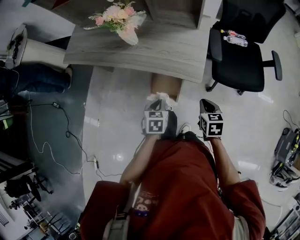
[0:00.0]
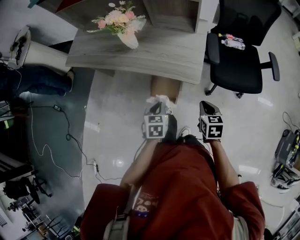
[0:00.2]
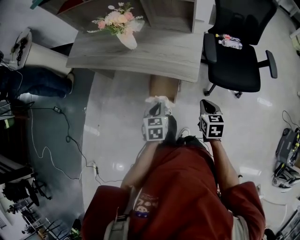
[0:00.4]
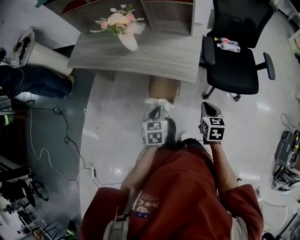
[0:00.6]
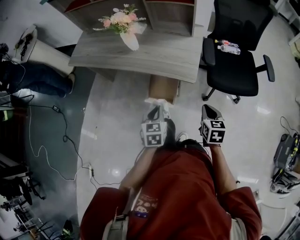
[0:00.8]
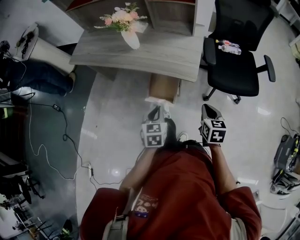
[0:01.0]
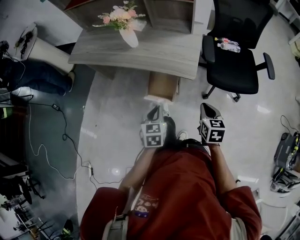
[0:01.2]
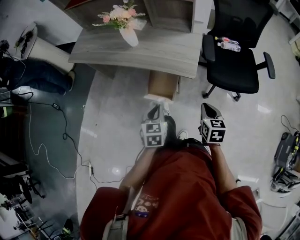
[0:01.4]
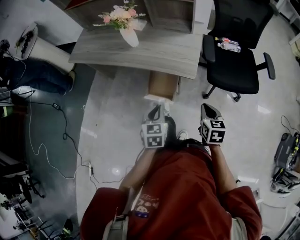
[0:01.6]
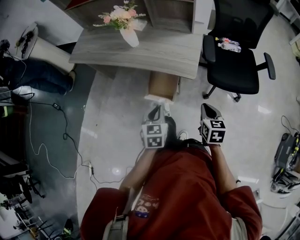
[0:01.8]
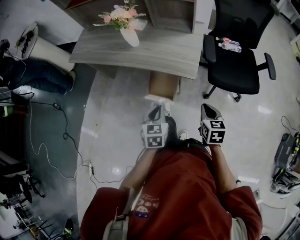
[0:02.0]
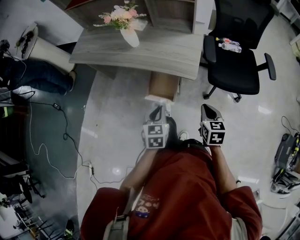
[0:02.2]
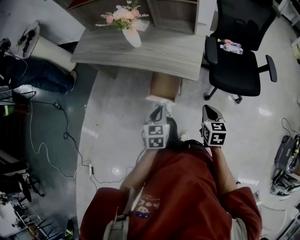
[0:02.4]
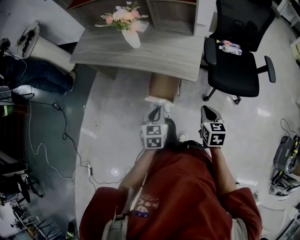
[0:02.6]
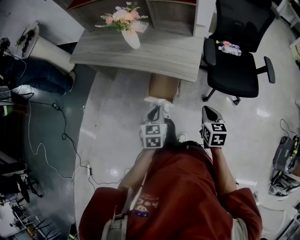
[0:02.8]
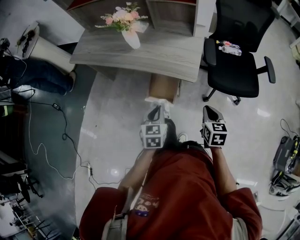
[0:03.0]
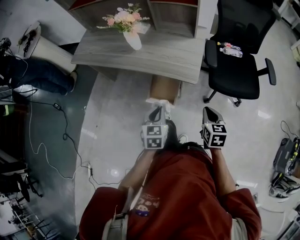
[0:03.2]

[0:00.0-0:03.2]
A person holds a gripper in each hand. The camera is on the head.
0:00.0 to 0:01.6: The left gripper is displaced backward and upward by about 10 cm. Meanwhile the right gripper moves backward, approximately 10 cm.
0:01.6 to 0:03.2: Both grippers stay about where they are.

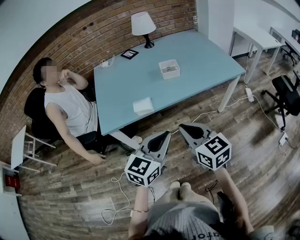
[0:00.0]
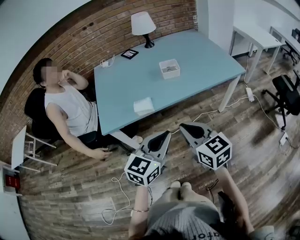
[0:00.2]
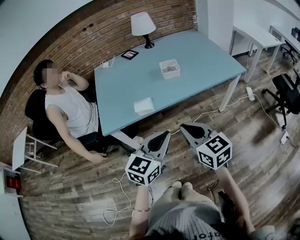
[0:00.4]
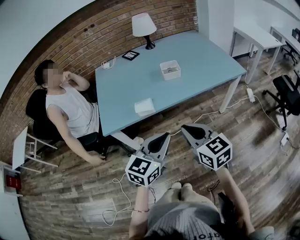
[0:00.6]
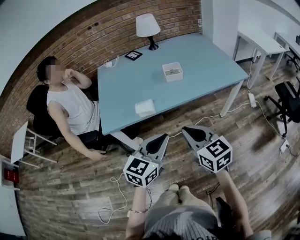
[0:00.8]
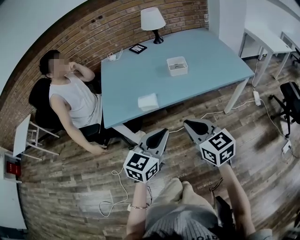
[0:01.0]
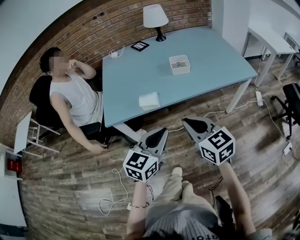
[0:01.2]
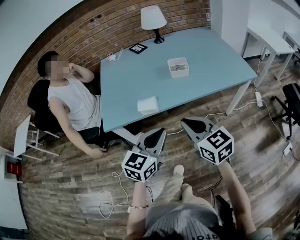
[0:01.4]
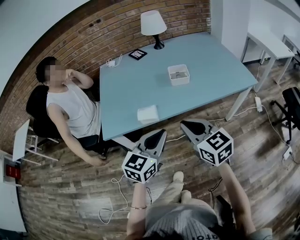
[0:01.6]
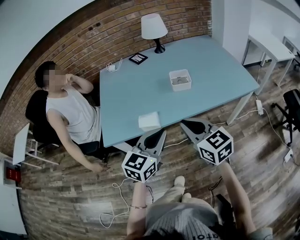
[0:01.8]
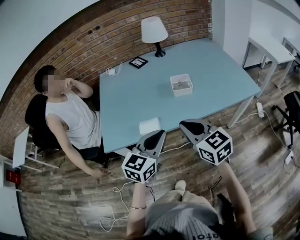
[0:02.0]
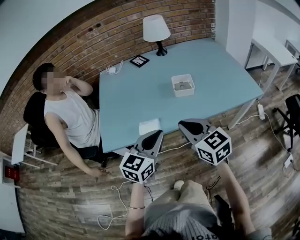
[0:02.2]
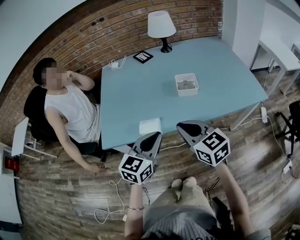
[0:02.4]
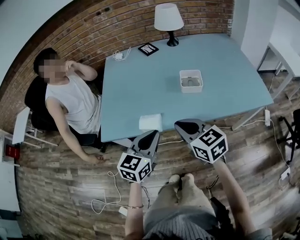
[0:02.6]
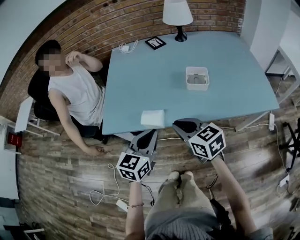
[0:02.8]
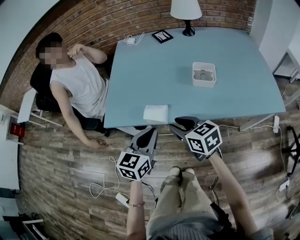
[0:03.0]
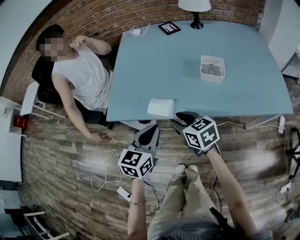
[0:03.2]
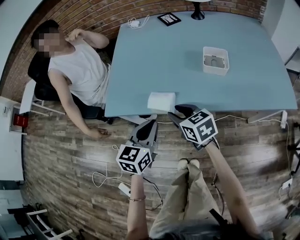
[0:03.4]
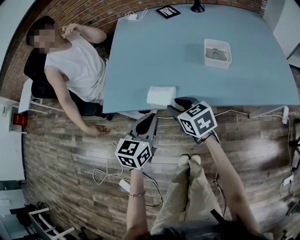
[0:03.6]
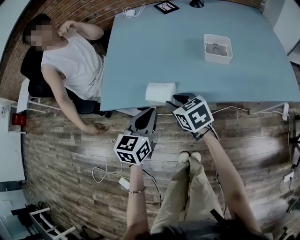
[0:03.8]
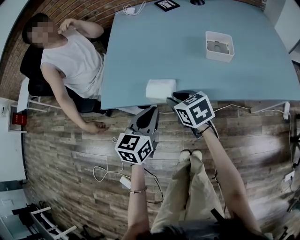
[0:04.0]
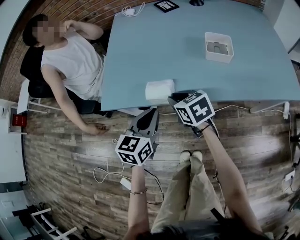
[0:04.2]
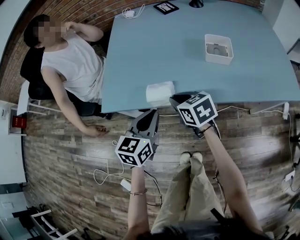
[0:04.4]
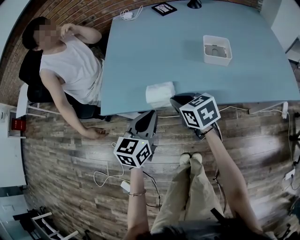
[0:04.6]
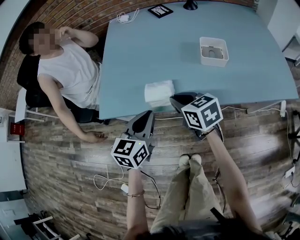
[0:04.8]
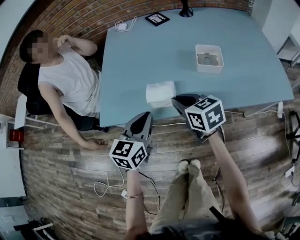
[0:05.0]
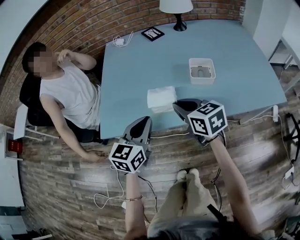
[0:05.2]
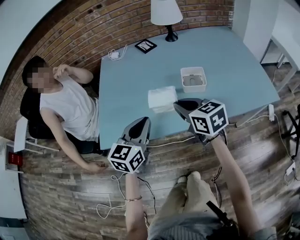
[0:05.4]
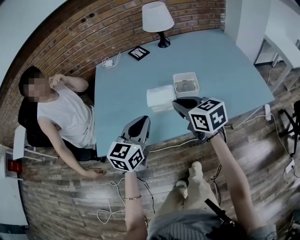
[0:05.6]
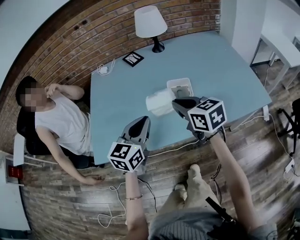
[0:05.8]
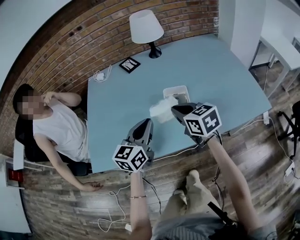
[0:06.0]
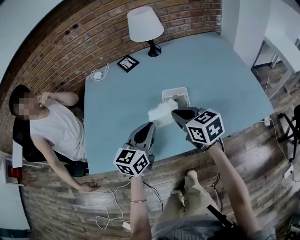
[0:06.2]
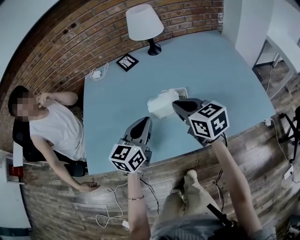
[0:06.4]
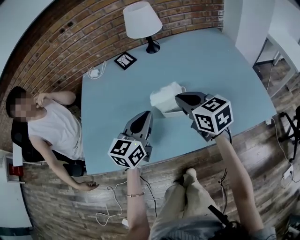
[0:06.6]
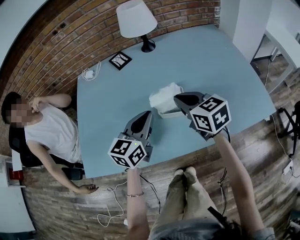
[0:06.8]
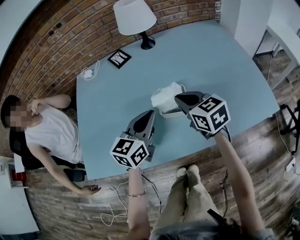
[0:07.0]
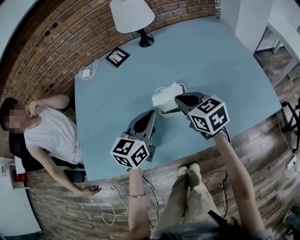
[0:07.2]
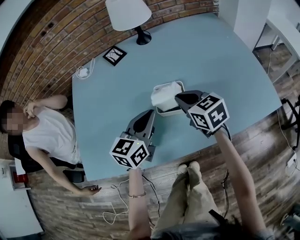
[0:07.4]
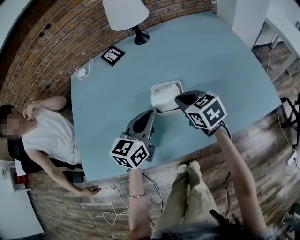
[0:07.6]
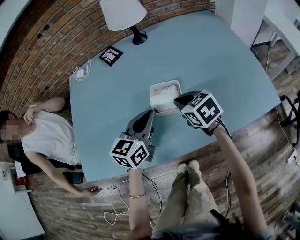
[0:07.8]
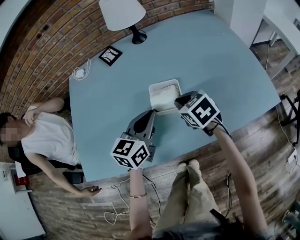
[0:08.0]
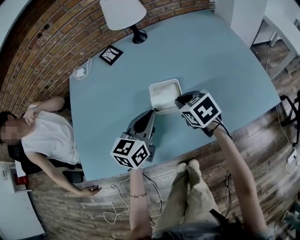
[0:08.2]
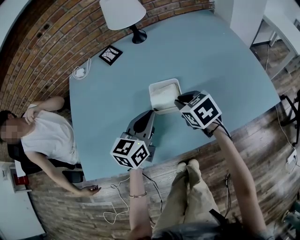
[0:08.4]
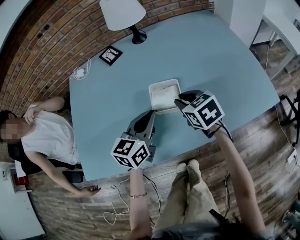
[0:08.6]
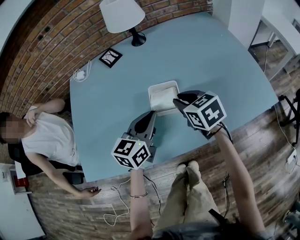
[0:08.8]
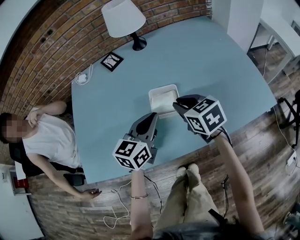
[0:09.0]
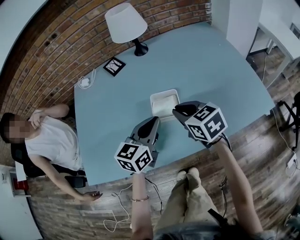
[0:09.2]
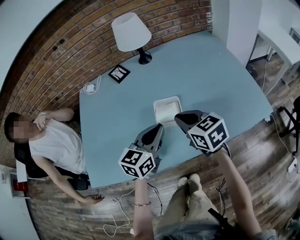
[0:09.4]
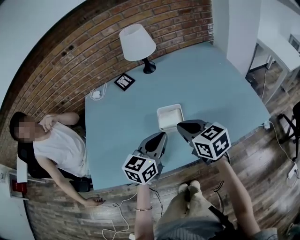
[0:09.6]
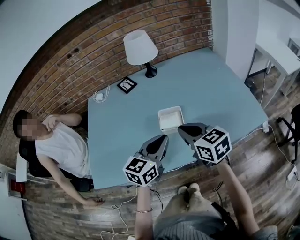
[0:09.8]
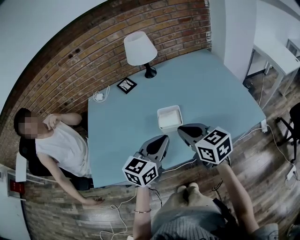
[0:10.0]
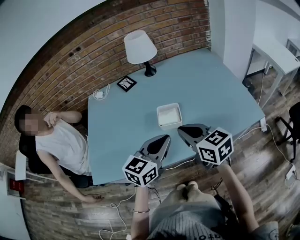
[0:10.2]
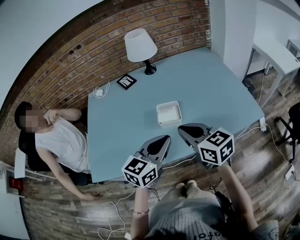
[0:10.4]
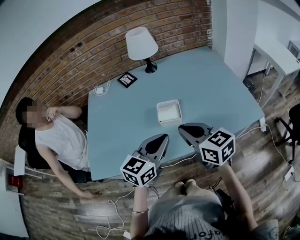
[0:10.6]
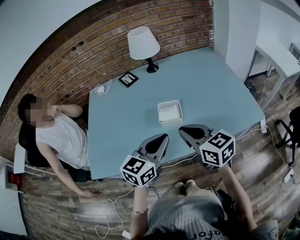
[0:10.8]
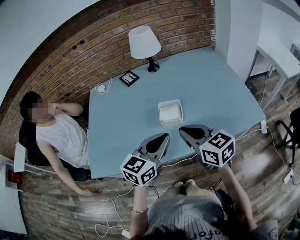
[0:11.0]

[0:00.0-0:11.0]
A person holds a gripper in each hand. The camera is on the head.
0:00.0 to 0:01.6: Both grippers move forward, roughly 10 cm.
0:01.6 to 0:03.2: The left gripper ends up about 15 cm from where it was, and rotates some 30 degrees; the right gripper shifts by approximately 20 cm, changes its angle by approximately 30 degrees, and opens its fingers.
0:03.2 to 0:04.8: The right gripper goes some 5 cm forward, and closes. The left gripper ends up roughly 5 cm from where it was.
0:04.8 to 0:06.2: Both grippers travel together to the right, forward and upward, about 25 cm.
0:06.2 to 0:07.8: The right gripper travels downward, forward and to the right by roughly 10 cm. Meanwhile the left gripper moves forward and to the right, some 10 cm.
0:07.8 to 0:09.4: The left gripper changes place by some 5 cm. Meanwhile the right gripper heads upward, covering approximately 10 cm.
0:09.4 to 0:11.0: The two grippers go roughly 10 cm backward and upward.

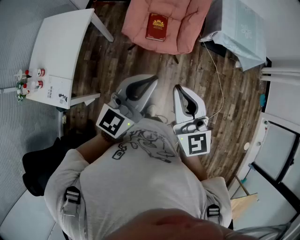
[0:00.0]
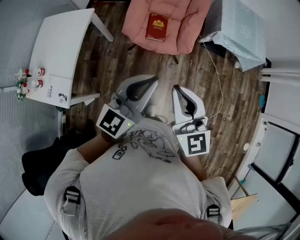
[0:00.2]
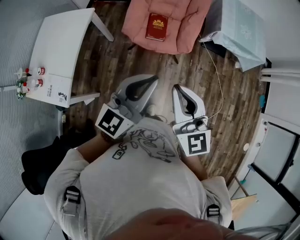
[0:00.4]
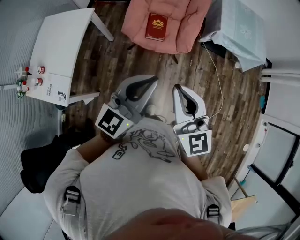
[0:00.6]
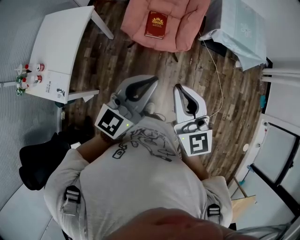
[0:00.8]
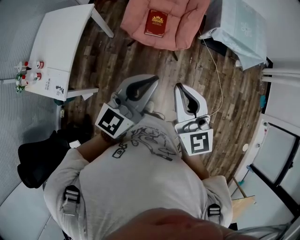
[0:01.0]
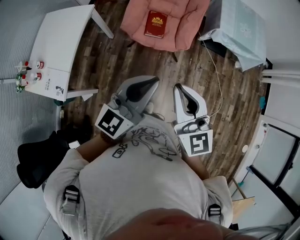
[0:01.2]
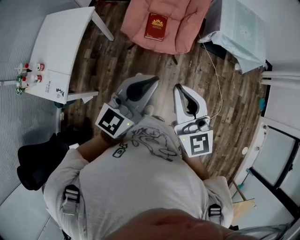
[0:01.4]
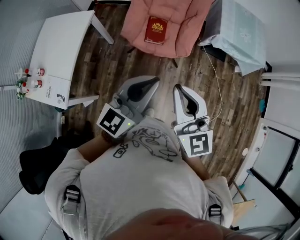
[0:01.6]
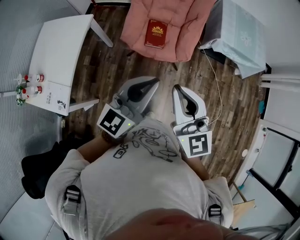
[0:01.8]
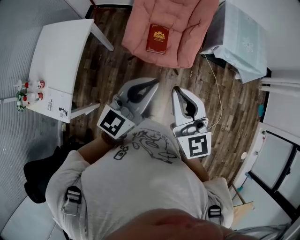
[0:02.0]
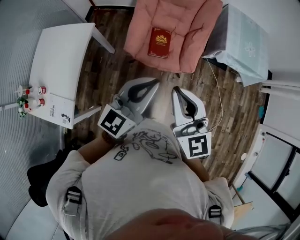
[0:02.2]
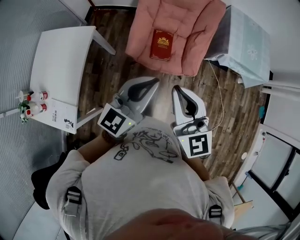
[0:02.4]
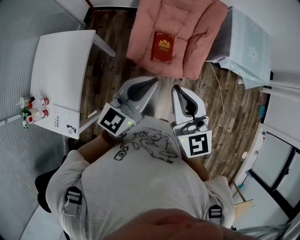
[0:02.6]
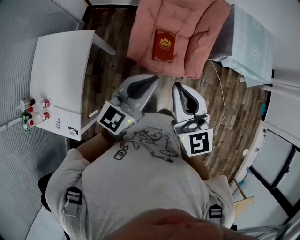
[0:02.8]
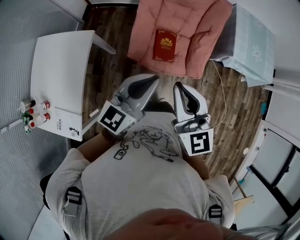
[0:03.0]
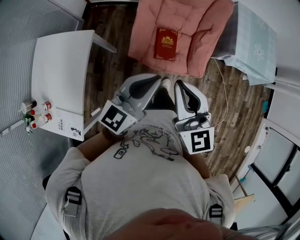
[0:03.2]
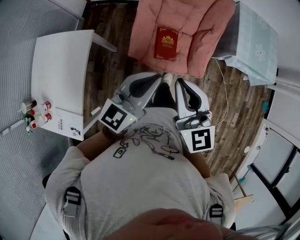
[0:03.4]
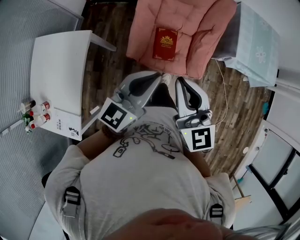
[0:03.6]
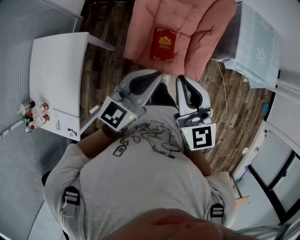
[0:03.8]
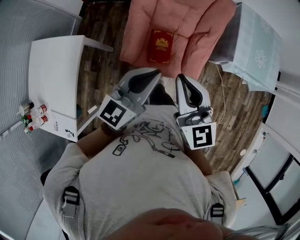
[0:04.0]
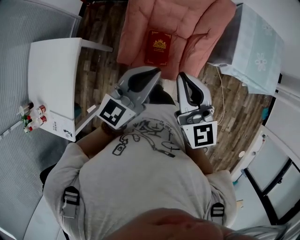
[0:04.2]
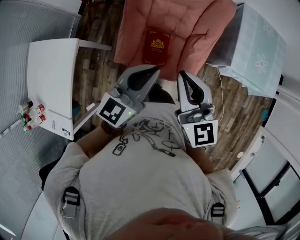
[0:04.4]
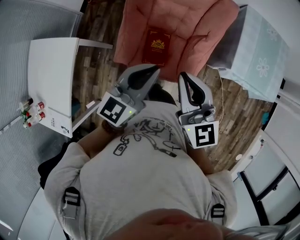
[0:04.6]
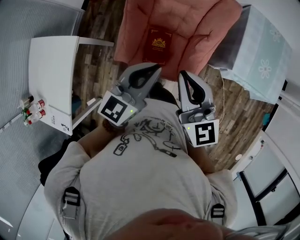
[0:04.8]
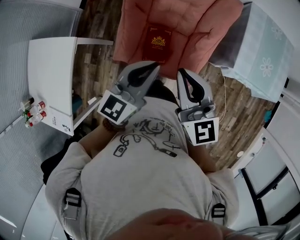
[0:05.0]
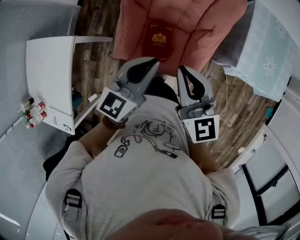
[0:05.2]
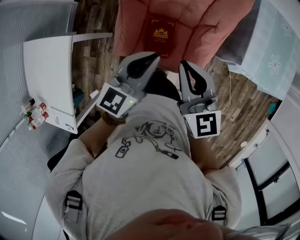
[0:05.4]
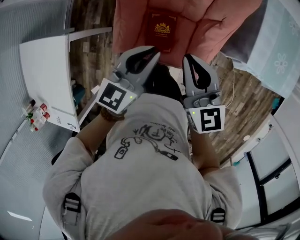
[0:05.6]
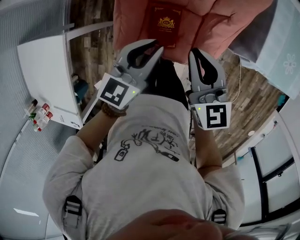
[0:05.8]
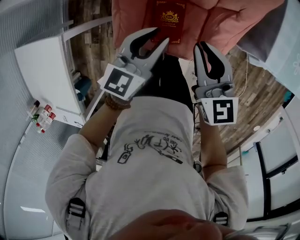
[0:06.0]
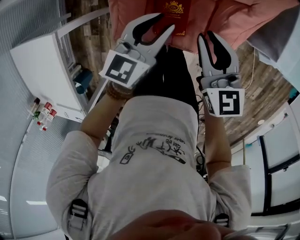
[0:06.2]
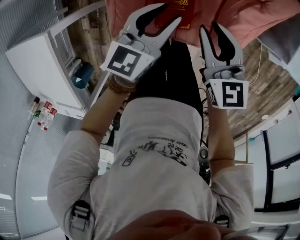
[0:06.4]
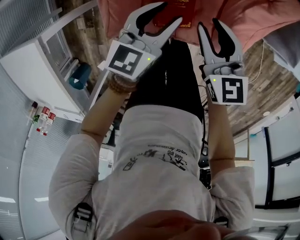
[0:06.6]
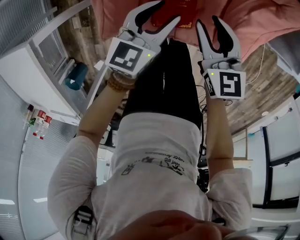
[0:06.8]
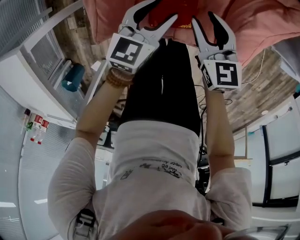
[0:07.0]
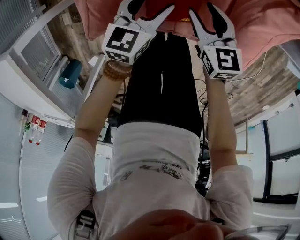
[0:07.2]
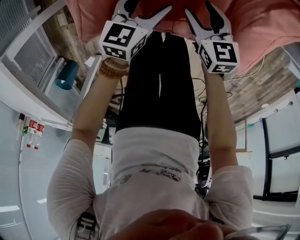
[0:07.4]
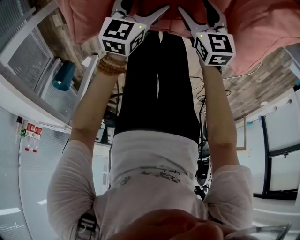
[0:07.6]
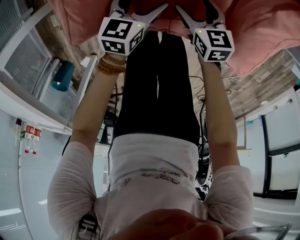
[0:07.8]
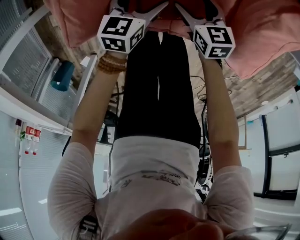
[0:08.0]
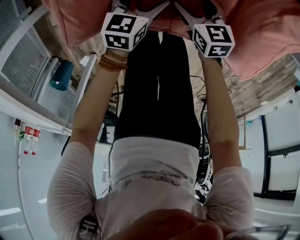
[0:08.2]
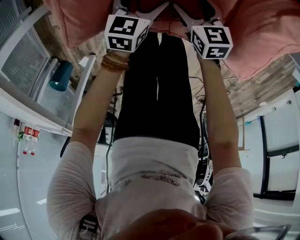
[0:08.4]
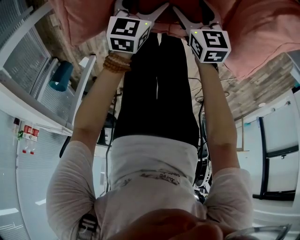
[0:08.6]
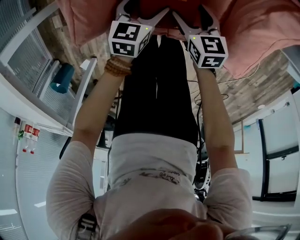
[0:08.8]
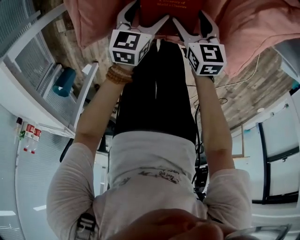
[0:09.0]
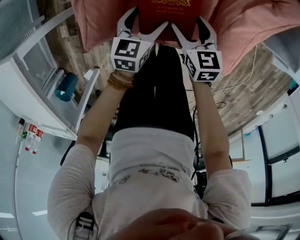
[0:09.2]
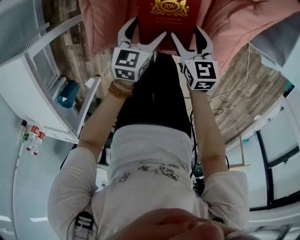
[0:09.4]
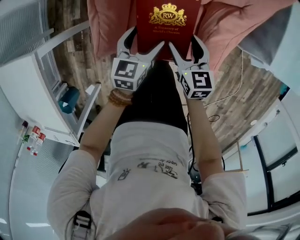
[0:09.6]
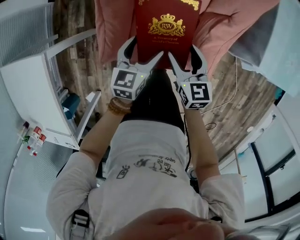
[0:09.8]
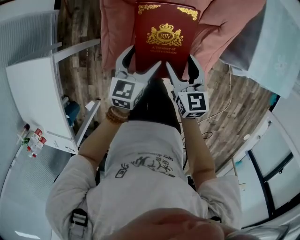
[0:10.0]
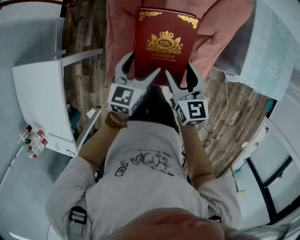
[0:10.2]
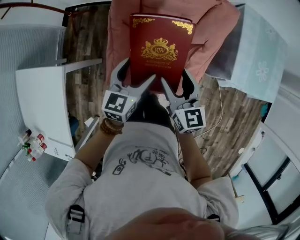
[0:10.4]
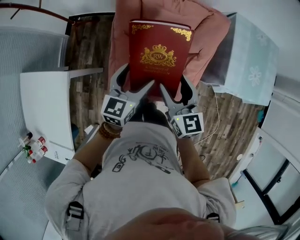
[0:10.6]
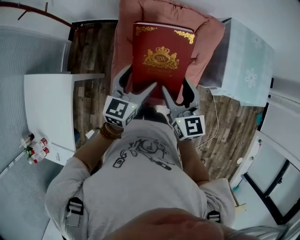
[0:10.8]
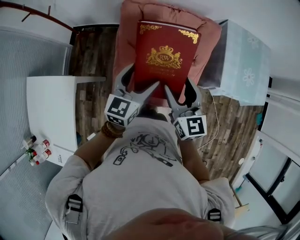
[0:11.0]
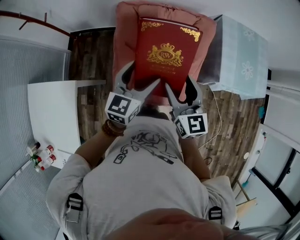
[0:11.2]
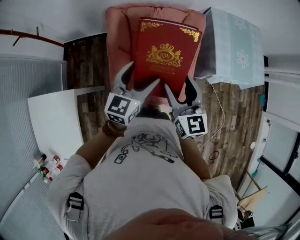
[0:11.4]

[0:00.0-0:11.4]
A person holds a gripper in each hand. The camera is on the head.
0:00.0 to 0:01.4: The grippers both shift to the right by roughly 5 cm.
0:01.4 to 0:02.8: The two grippers go about 35 cm forward and to the left.
0:02.8 to 0:04.2: Both grippers move forward and to the right, about 20 cm.
0:04.2 to 0:05.6: Both grippers travel together forward and downward, about 25 cm.
0:05.6 to 0:07.2: Both grippers travel together downward, about 50 cm. The right gripper turns by approximately 20 degrees, and opens its fingers, while the left gripper opens up.
0:07.2 to 0:08.6: Both grippers move downward, approximately 15 cm. The right gripper opens up.
0:08.6 to 0:10.0: Both grippers travel together upward, approximately 40 cm. The right gripper changes its angle by some 20 degrees.
0:10.0 to 0:11.4: Both grippers move upward, some 35 cm. The right gripper changes its angle by some 20 degrees, while the left gripper turns by about 20 degrees.
